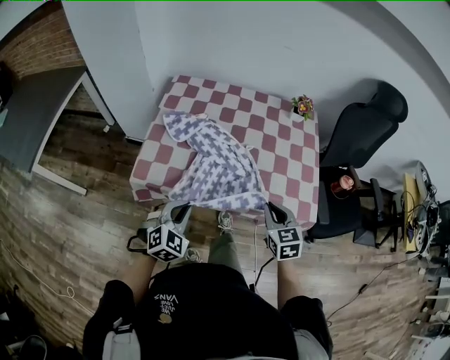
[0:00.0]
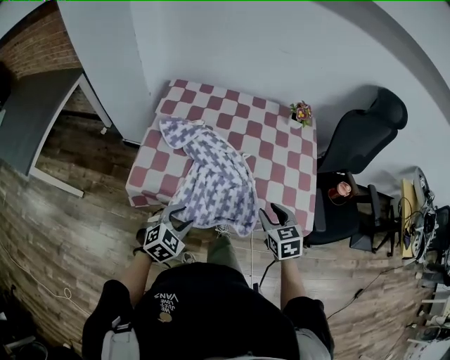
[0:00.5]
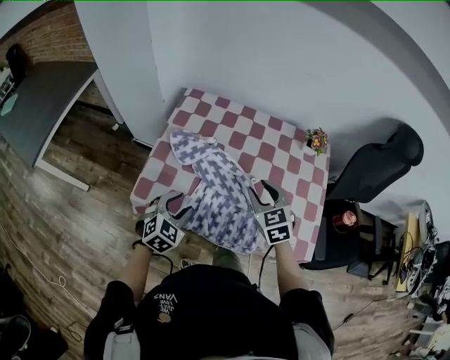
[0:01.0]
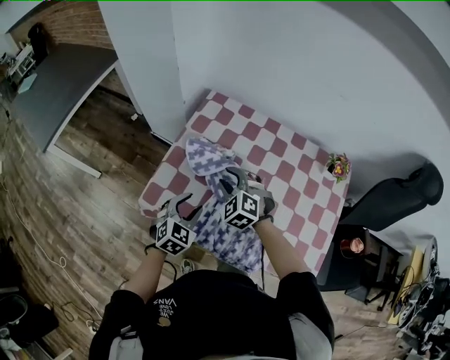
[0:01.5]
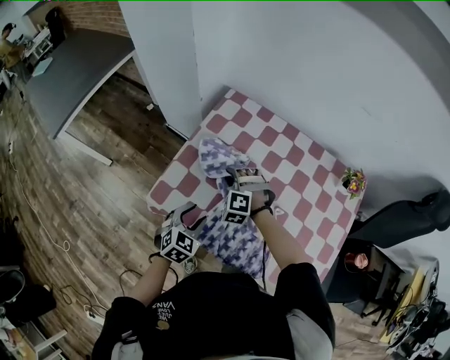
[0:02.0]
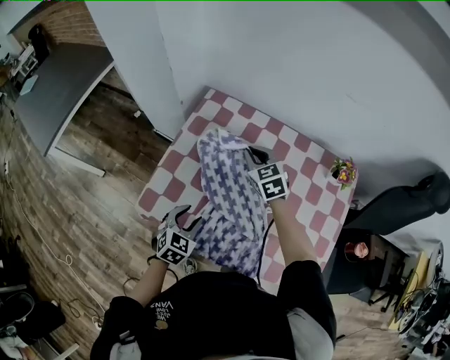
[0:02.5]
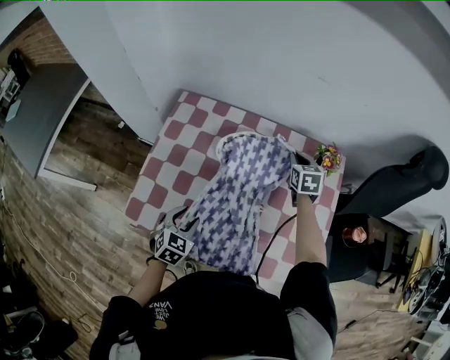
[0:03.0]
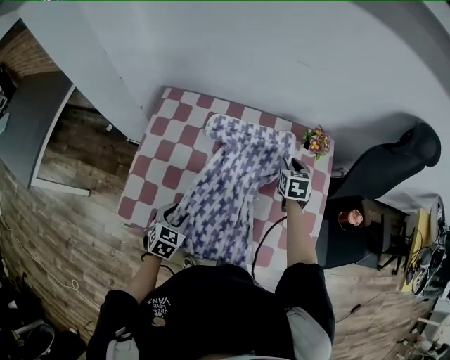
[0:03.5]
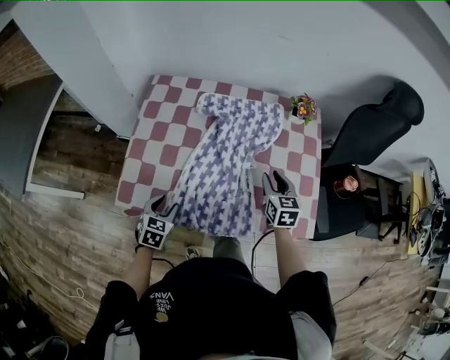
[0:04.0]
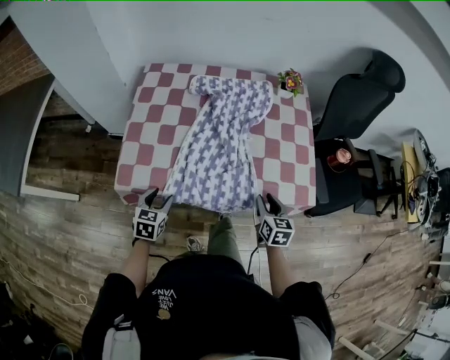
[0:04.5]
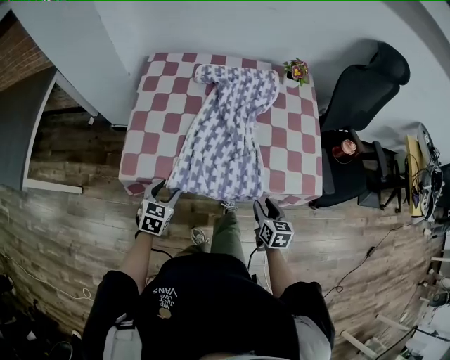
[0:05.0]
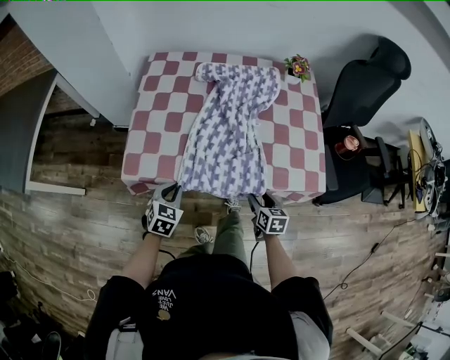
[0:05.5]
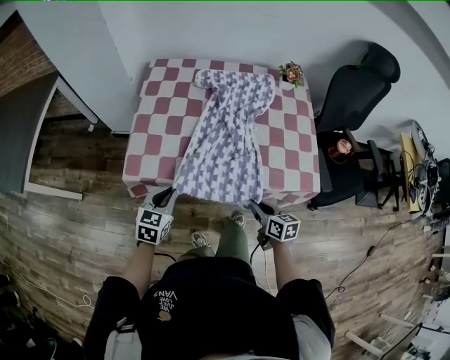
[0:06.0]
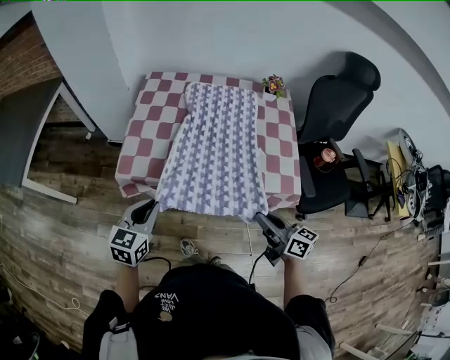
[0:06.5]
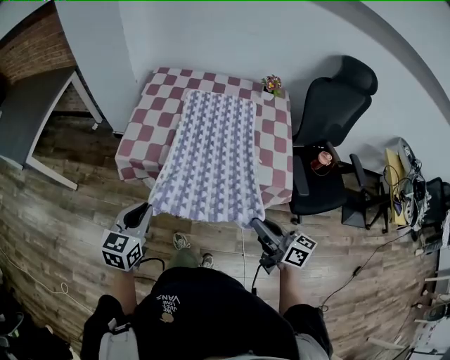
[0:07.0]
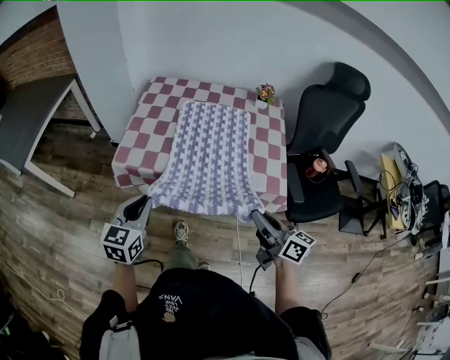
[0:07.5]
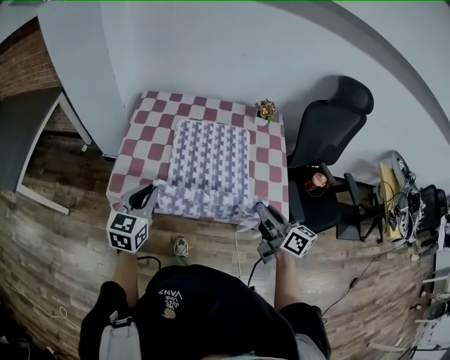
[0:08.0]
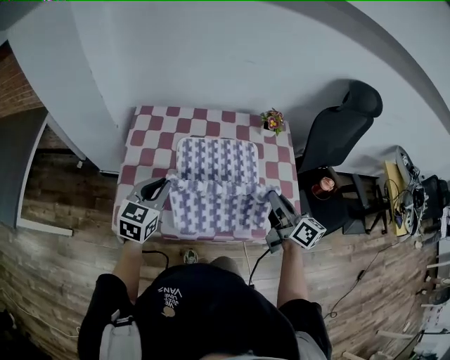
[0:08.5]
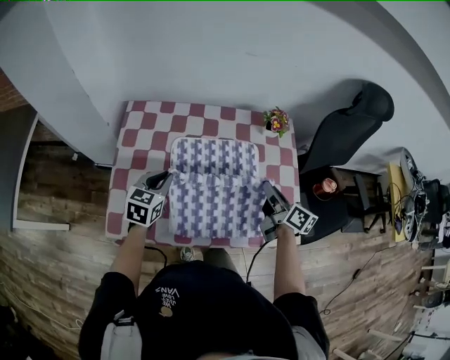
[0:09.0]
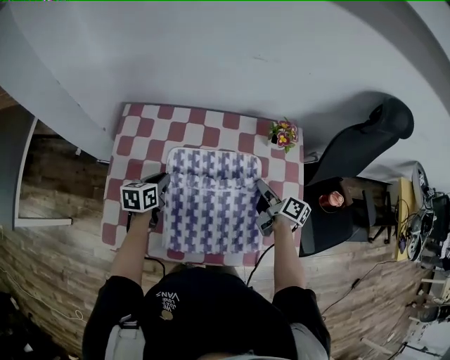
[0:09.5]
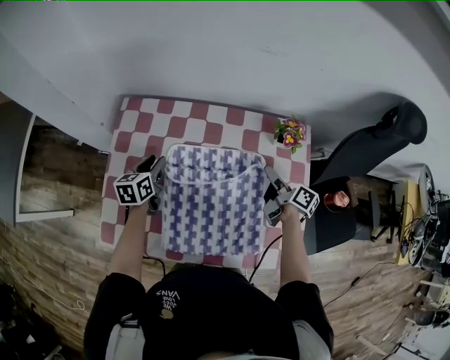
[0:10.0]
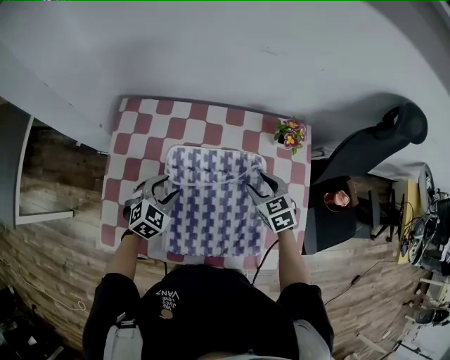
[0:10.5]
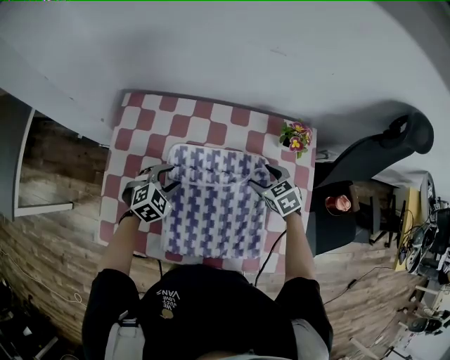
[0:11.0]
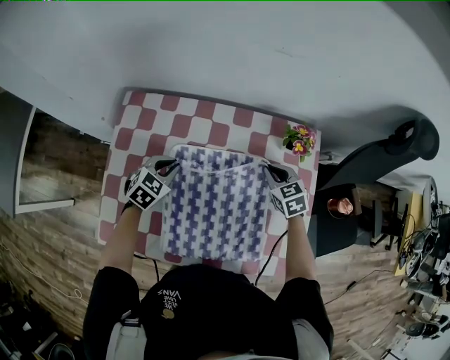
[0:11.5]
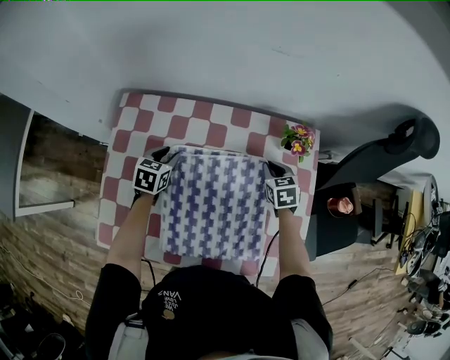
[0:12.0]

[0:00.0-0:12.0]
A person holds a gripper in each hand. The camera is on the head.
0:00.0 to 0:02.0: The left gripper is displaced forward and downward by roughly 15 cm, rotates approximately 30 degrees, and opens its fingers, while the right gripper goes approximately 40 cm forward and to the left, twists about 80 degrees counterclockwise, seen from behind, and opens.
0:02.0 to 0:04.0: The right gripper is displaced to the right by roughly 35 cm, twists about 90 degrees clockwise, seen from behind, and closes, then opens again.
0:04.0 to 0:06.0: The left gripper is displaced backward by some 10 cm, and closes its fingers; the right gripper travels backward by roughly 25 cm, turns by approximately 30 degrees, and opens, then closes once more.
0:06.0 to 0:08.0: The grippers both shift upward by about 20 cm. The right gripper changes its angle by about 30 degrees. The left gripper travels backward and back again, roughly 15 cm each way.
0:08.0 to 0:10.0: The two grippers go approximately 40 cm forward and downward. The left gripper swivels some 30 degrees, and opens up. The right gripper turns by roughly 30 degrees, and opens its fingers.
0:10.0 to 0:12.0: The left gripper moves approximately 10 cm backward and comes back, and rotates approximately 20 degrees; the right gripper ends up some 5 cm from where it was, twists roughly 70 degrees counterclockwise, seen from behind, and closes up.

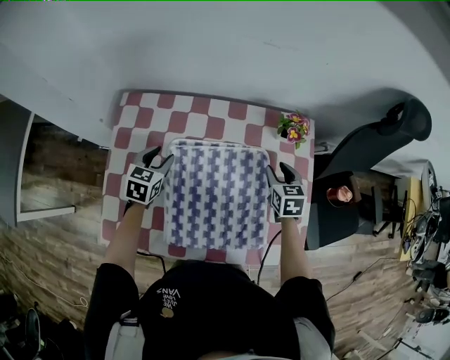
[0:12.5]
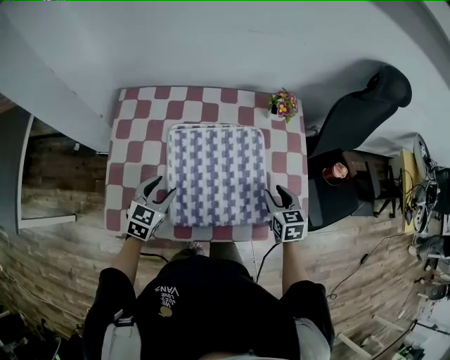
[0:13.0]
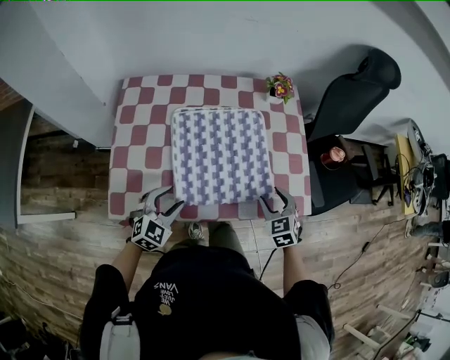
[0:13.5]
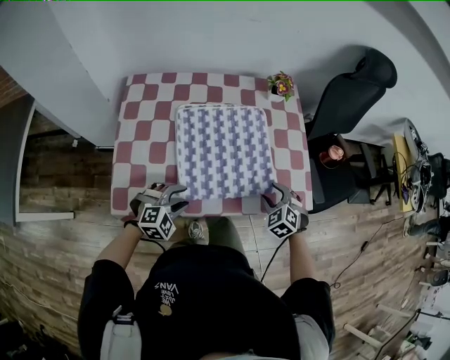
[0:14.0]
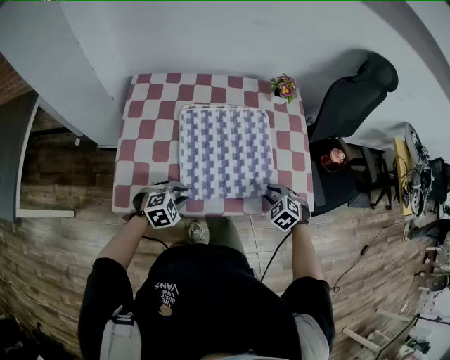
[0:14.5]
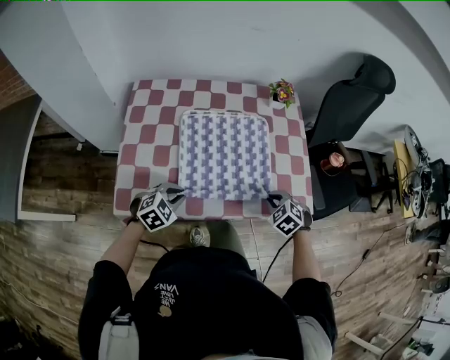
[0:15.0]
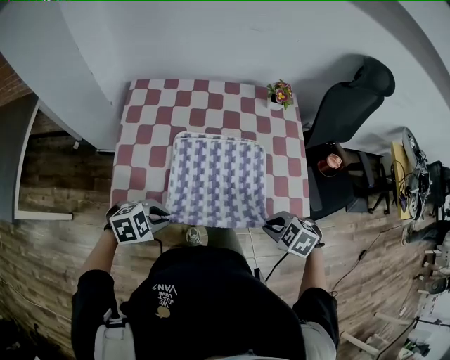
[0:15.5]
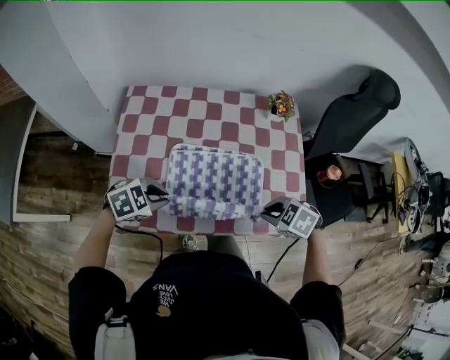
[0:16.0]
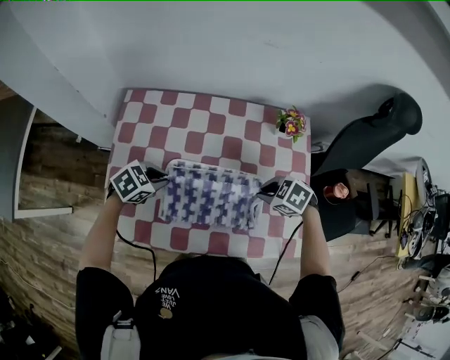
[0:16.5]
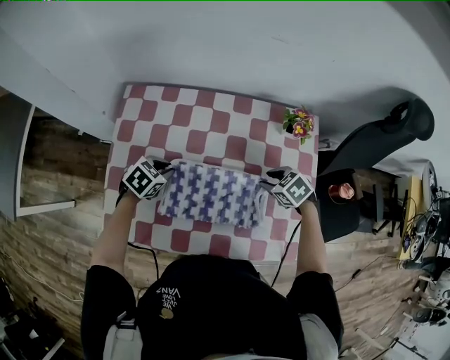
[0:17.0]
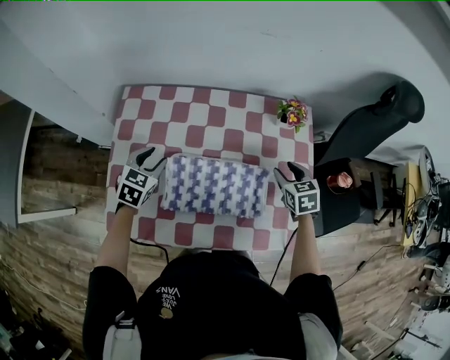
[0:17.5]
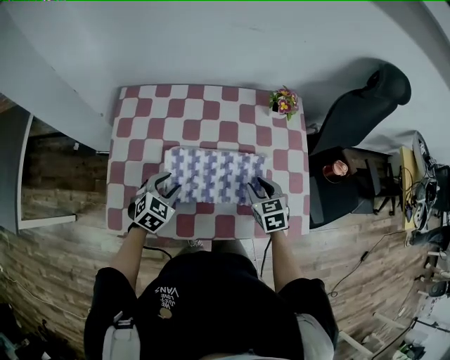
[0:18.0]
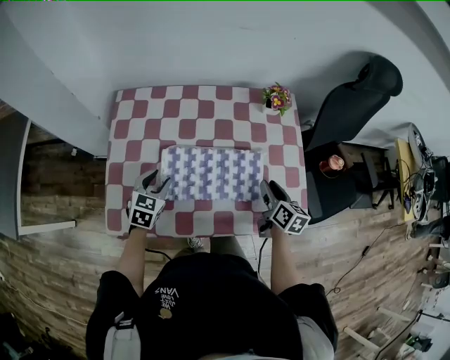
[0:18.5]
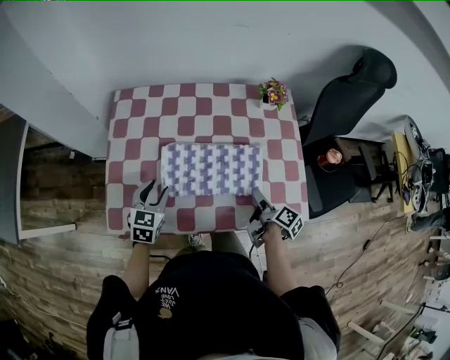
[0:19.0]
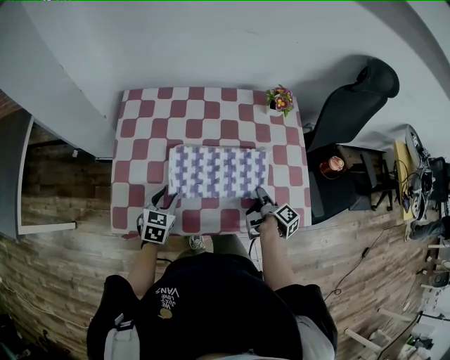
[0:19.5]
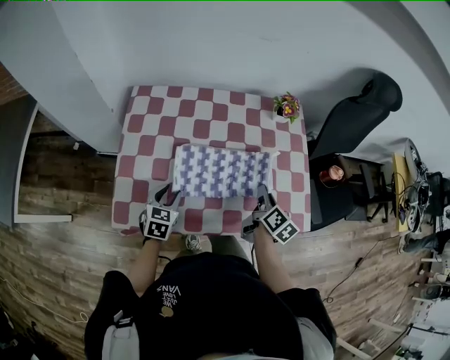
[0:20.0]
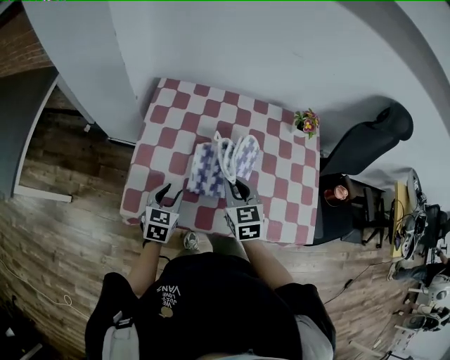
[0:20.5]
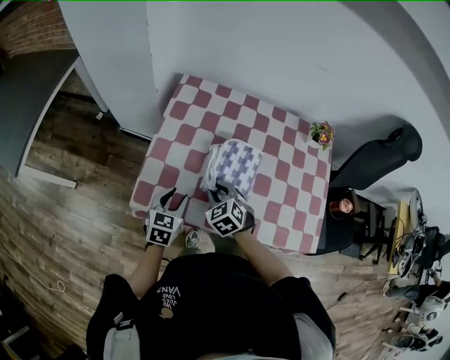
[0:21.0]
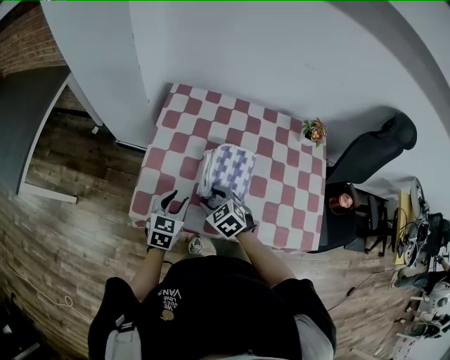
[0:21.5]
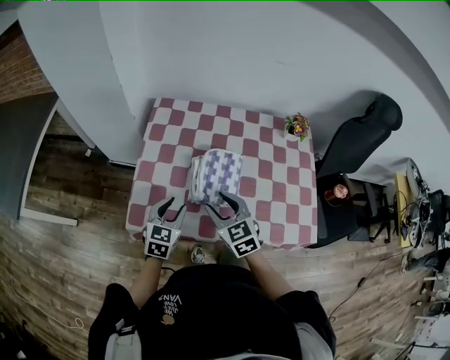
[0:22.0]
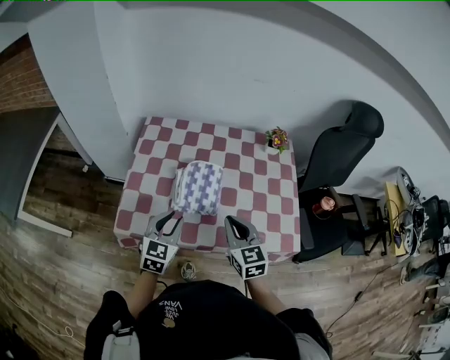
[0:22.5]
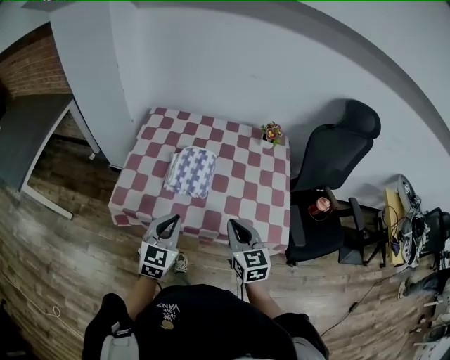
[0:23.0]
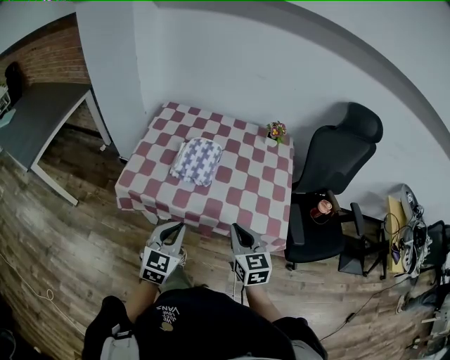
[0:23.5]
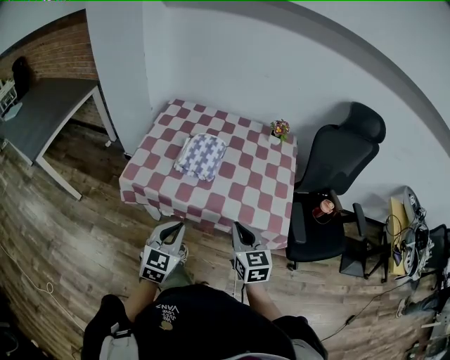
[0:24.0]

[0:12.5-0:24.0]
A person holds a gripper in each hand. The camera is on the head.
0:12.5 to 0:14.5: The right gripper goes some 30 cm backward, and rotates around the line of its fingers by some 40 degrees, counterclockwise from behind; the left gripper moves backward and to the right, roughly 30 cm, and rotates around the line of its fingers by approximately 50 degrees, clockwise from behind.
0:14.5 to 0:16.5: The right gripper ends up roughly 15 cm from where it was, turns by roughly 30 degrees, and closes, while the left gripper moves roughly 20 cm, and swivels roughly 30 degrees.
0:16.5 to 0:18.5: The left gripper goes up and down, about 5 cm each way, reversing 2 times, swivels about 40 degrees, and opens up. The right gripper ends up roughly 10 cm from where it was, angles its fingers upward, by some 40 degrees, and opens.
0:18.5 to 0:20.0: The right gripper moves to the left, roughly 5 cm, moves roughly 5 cm downward and comes back, and closes its fingers. Meanwhile the left gripper goes some 5 cm backward.
0:20.0 to 0:22.0: The left gripper heads upward, covering some 5 cm, while the right gripper swings up and down, about 10 cm each way, with 2 reversals, twists some 70 degrees counterclockwise, seen from behind, and opens its fingers.
0:22.0 to 0:24.0: Both grippers move backward and to the right, some 30 cm. The left gripper closes up. The right gripper closes up.

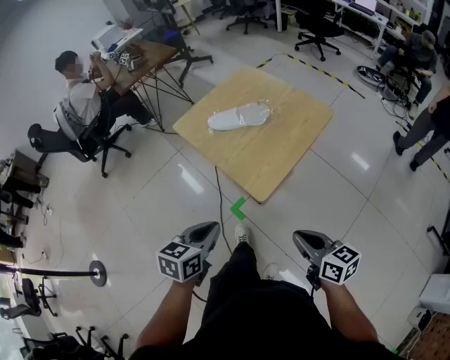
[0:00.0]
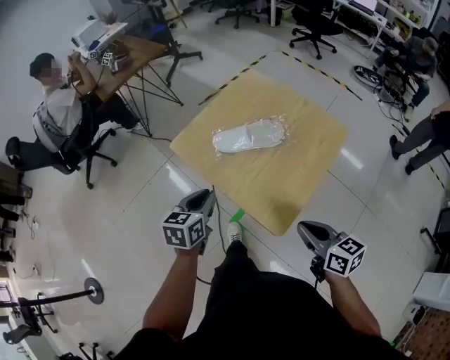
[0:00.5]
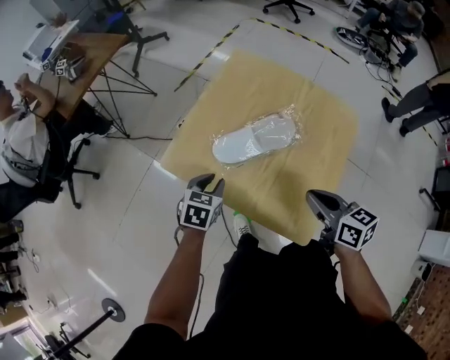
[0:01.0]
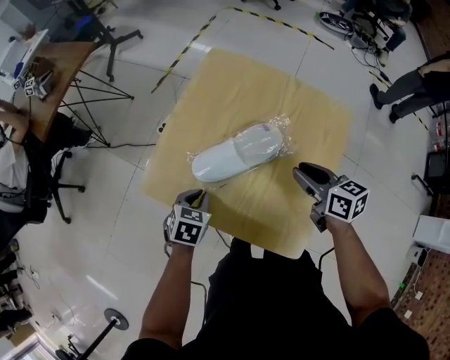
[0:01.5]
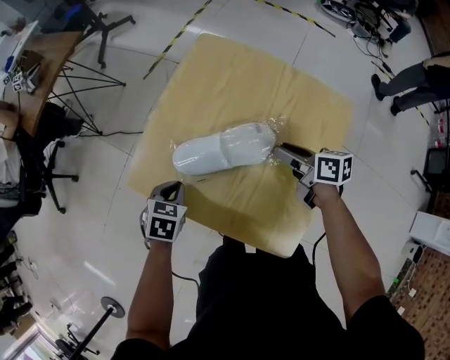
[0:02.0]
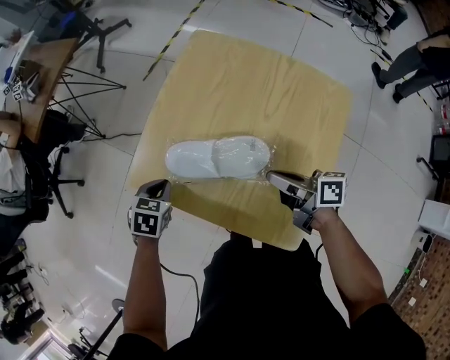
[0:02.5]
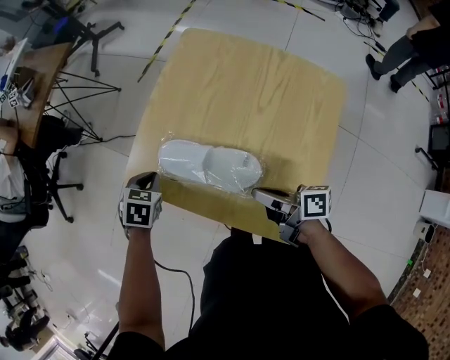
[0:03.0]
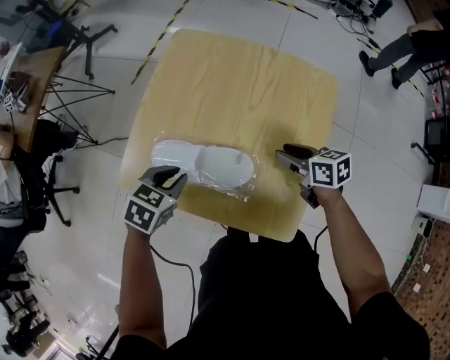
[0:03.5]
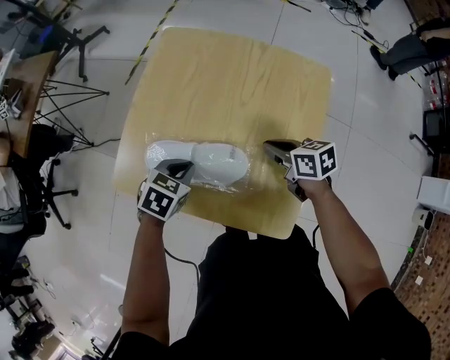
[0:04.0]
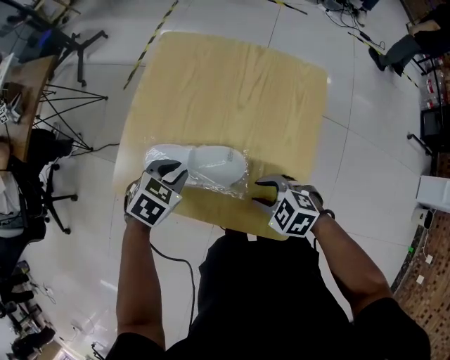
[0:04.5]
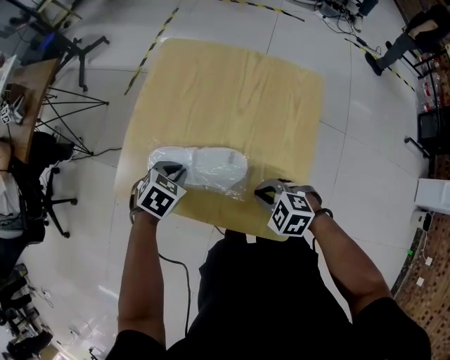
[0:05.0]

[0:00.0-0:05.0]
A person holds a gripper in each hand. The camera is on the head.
0:00.0 to 0:02.5: The pair of grippers is taken forward, some 40 cm. The left gripper travels downward by some 20 cm, rotates roughly 40 degrees, and opens and closes again. The right gripper swivels roughly 40 degrees, and opens and closes again.
0:02.5 to 0:05.0: The right gripper moves some 10 cm, tips its fingers downward by approximately 50 degrees, and opens, then closes again. Meanwhile the left gripper shifts by roughly 10 cm, and turns by roughly 30 degrees.
